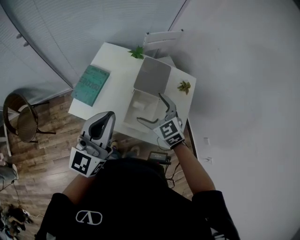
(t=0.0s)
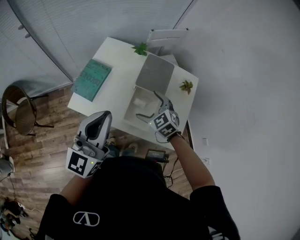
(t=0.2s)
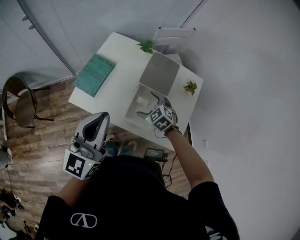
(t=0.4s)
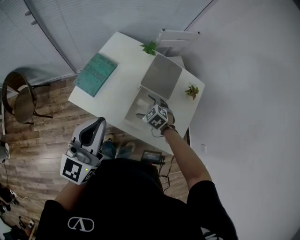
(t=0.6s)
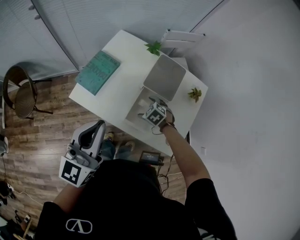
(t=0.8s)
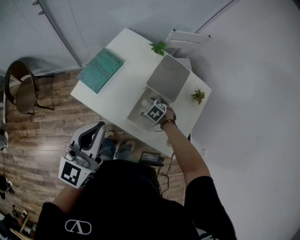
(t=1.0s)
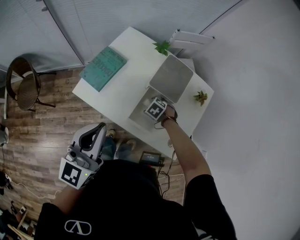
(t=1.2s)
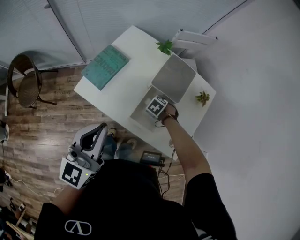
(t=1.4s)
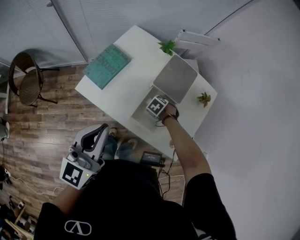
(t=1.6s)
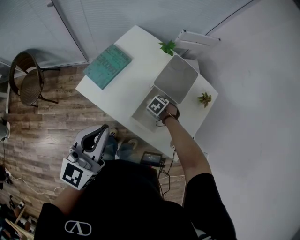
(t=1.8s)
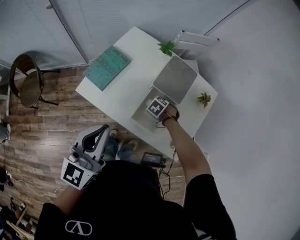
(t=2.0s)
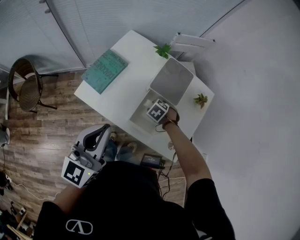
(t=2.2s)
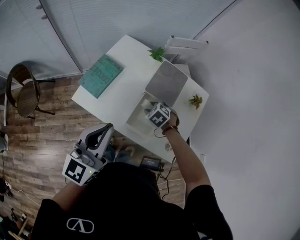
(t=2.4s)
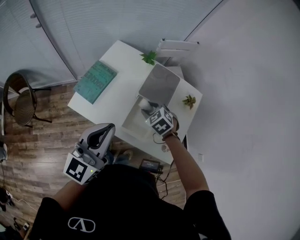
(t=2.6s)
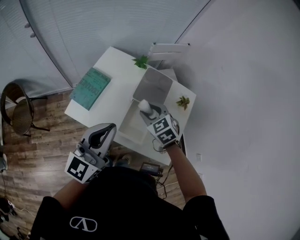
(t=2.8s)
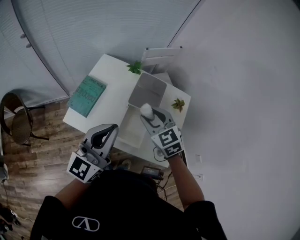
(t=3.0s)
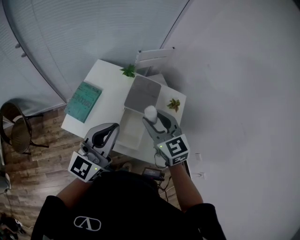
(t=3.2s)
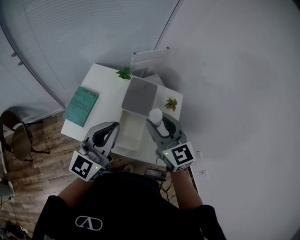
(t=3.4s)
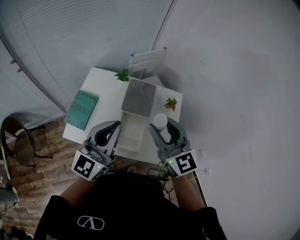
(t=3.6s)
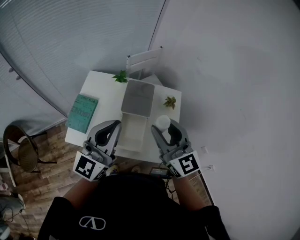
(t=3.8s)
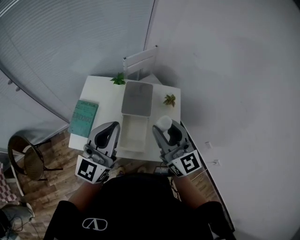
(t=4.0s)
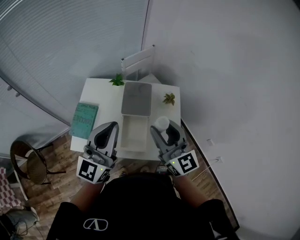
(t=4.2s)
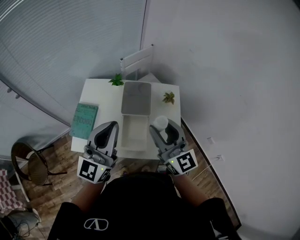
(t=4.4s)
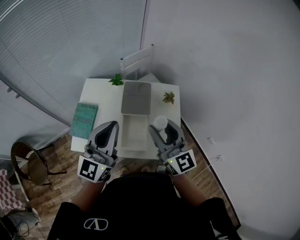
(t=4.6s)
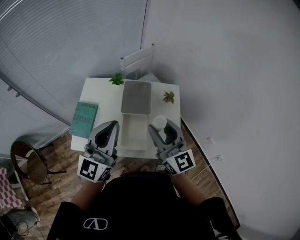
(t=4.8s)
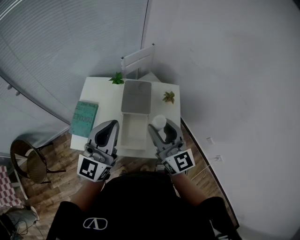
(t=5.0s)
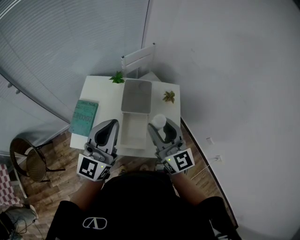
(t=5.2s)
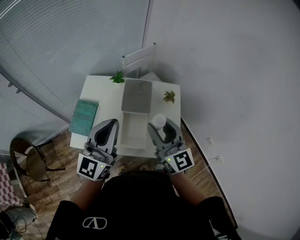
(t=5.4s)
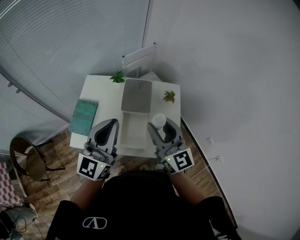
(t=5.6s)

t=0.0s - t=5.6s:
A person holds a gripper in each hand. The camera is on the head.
t=0.0s - t=1.4s: The left gripper travels downward by some 10 cm. Meanwhile the right gripper travels downward by roughly 30 cm, tips its fingers downward by about 50 degrees, and closes up.
t=1.4s - t=2.8s: The left gripper ends up about 10 cm from where it was, while the right gripper moves upward, about 25 cm, and angles its fingers upward, by roughly 40 degrees.
t=2.8s - t=4.2s: The right gripper heads upward, to the right and backward, covering roughly 25 cm, and tilts its fingers roughly 50 degrees upward, while the left gripper shifts about 10 cm upward and to the right.
t=4.2s - t=5.6s: Both grippers stay about where they are.

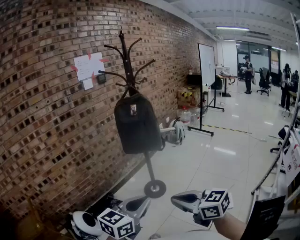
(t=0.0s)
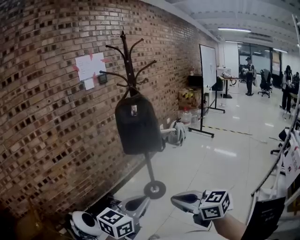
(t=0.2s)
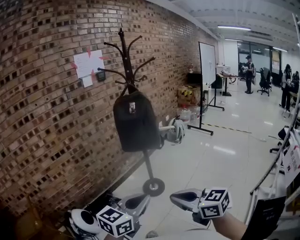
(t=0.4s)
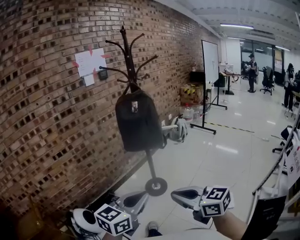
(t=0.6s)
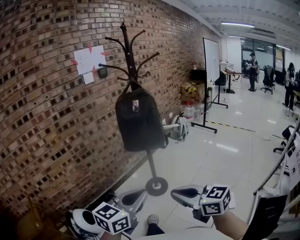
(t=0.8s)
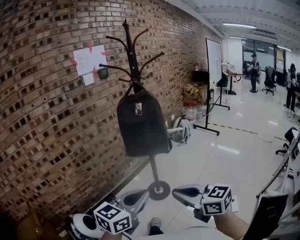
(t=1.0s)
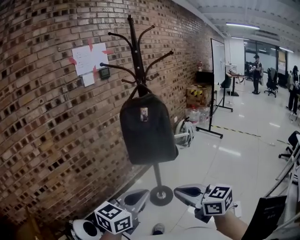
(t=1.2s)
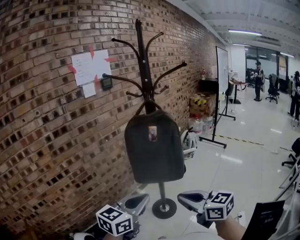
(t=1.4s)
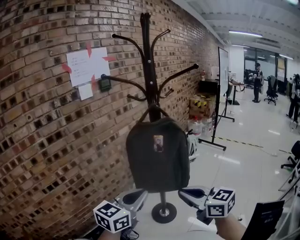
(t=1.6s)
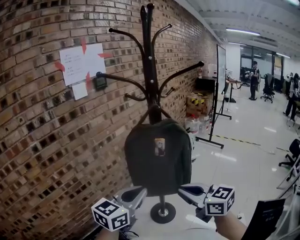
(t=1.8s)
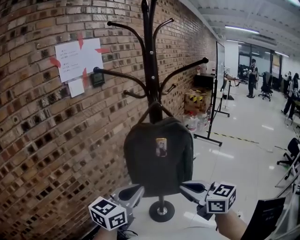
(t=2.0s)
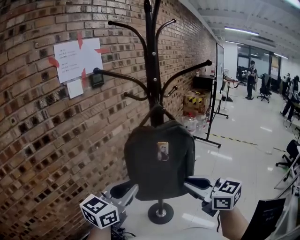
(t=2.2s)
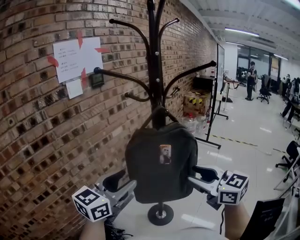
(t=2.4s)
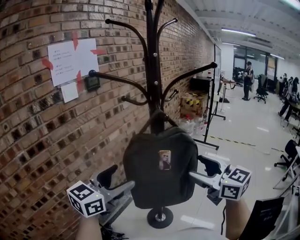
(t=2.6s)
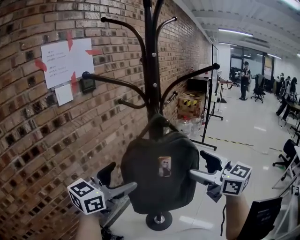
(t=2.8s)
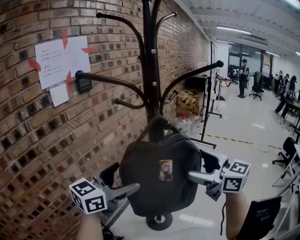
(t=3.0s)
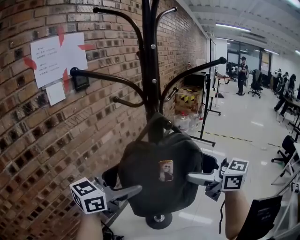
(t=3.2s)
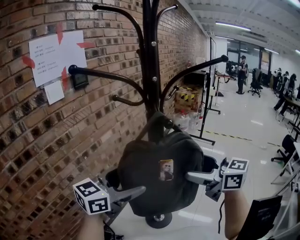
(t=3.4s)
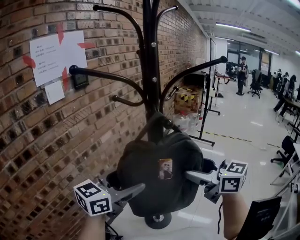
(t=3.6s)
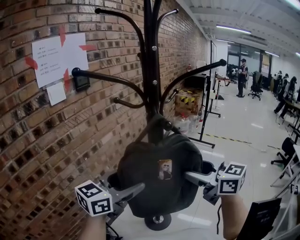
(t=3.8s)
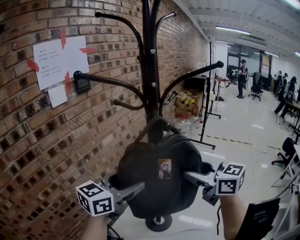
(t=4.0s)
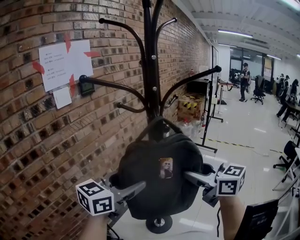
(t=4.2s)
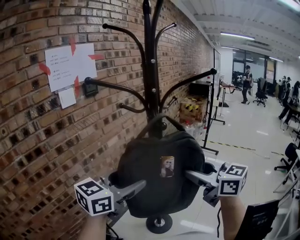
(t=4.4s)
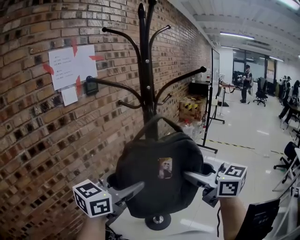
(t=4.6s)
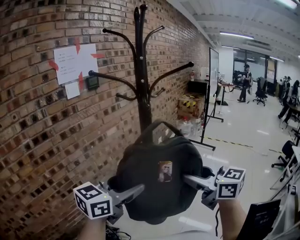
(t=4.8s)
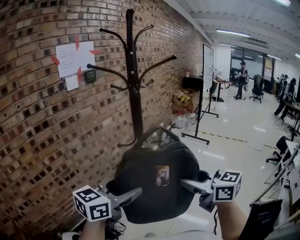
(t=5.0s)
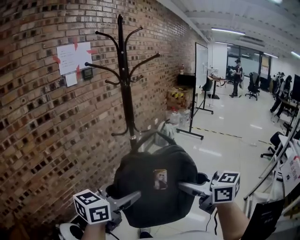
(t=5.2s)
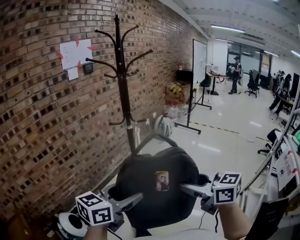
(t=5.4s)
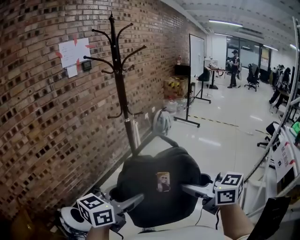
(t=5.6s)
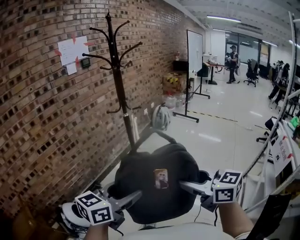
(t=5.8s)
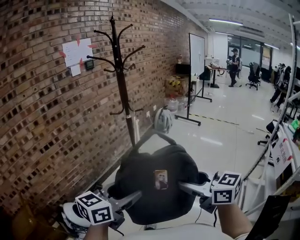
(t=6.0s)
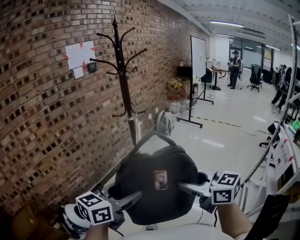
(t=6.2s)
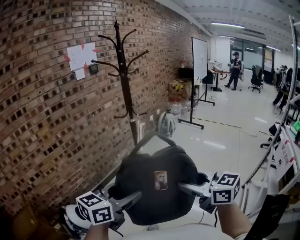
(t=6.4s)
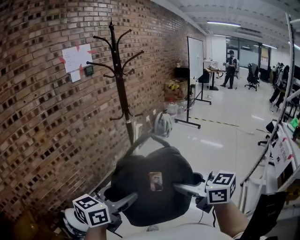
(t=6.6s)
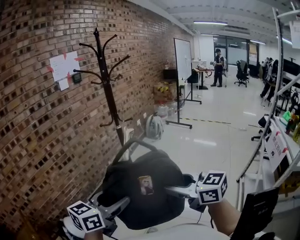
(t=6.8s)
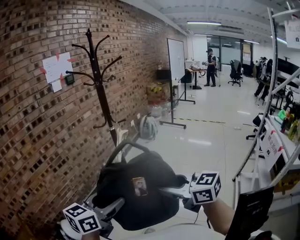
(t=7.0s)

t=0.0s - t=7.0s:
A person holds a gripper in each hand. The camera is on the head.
t=0.0s - t=1.4s: The two grippers go some 30 cm forward.
t=1.4s - t=2.8s: The right gripper goes approximately 30 cm forward and upward, turns by about 20 degrees, and opens its fingers. The left gripper shifts about 25 cm forward, and opens.
t=2.8s - t=4.2s: The left gripper closes its fingers, while the right gripper closes its fingers.
t=4.2s - t=5.6s: Both grippers are carried backward, some 50 cm.
t=5.6s - t=7.0s: The grippers stay close to where they were, moving slightly.

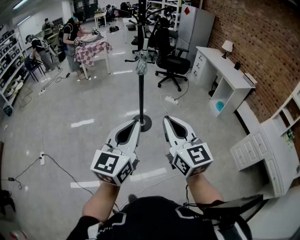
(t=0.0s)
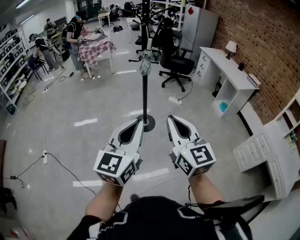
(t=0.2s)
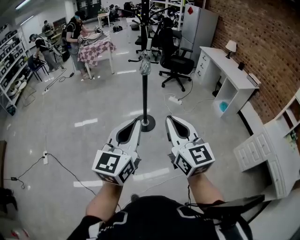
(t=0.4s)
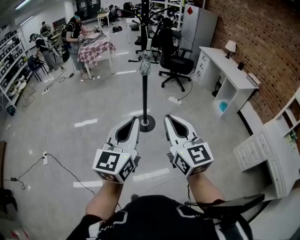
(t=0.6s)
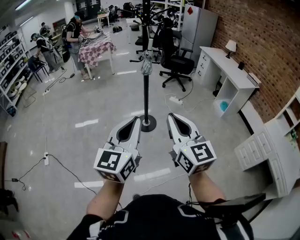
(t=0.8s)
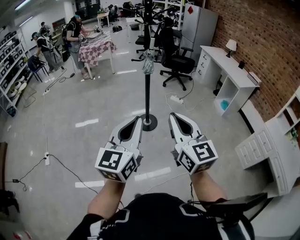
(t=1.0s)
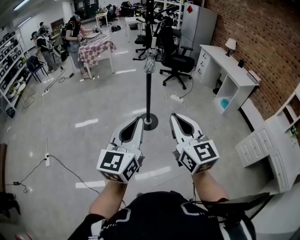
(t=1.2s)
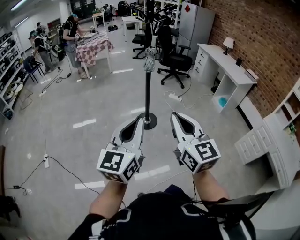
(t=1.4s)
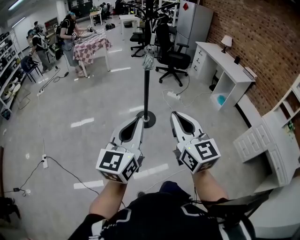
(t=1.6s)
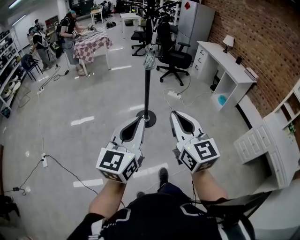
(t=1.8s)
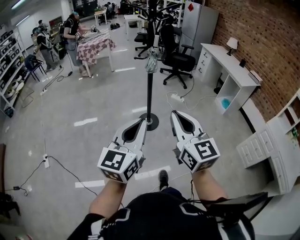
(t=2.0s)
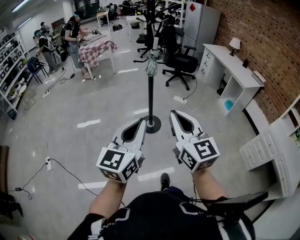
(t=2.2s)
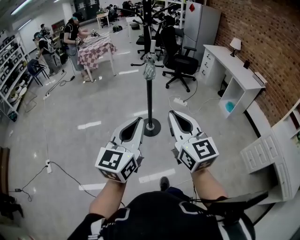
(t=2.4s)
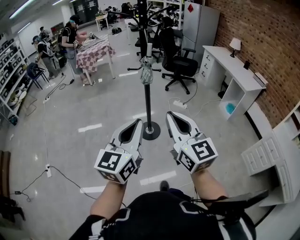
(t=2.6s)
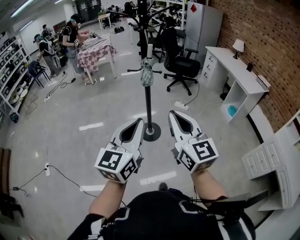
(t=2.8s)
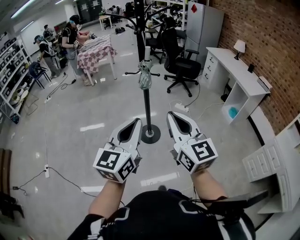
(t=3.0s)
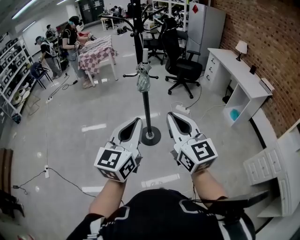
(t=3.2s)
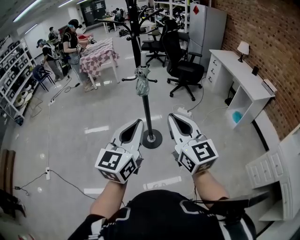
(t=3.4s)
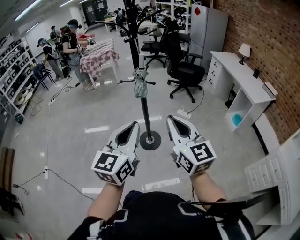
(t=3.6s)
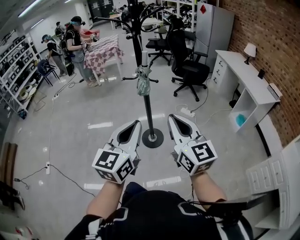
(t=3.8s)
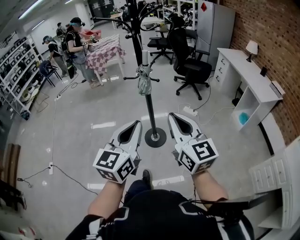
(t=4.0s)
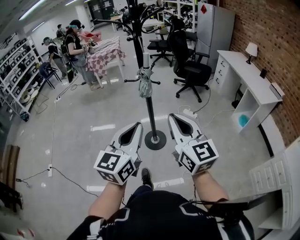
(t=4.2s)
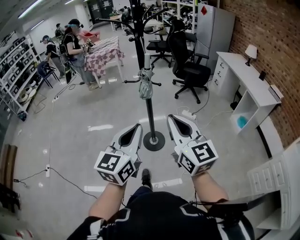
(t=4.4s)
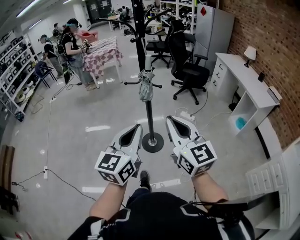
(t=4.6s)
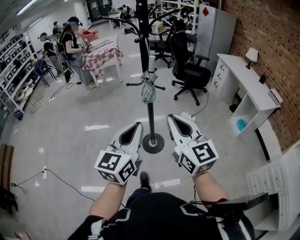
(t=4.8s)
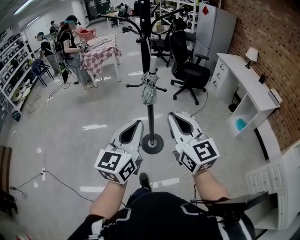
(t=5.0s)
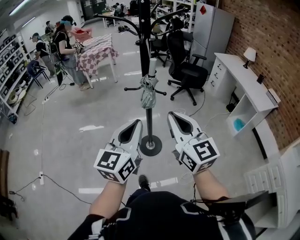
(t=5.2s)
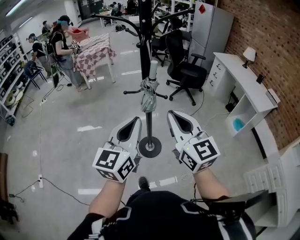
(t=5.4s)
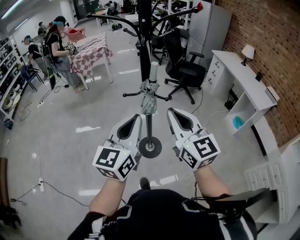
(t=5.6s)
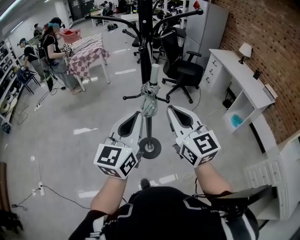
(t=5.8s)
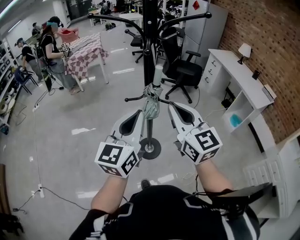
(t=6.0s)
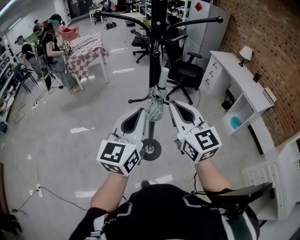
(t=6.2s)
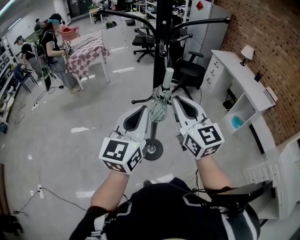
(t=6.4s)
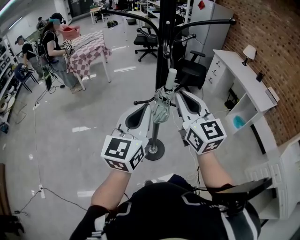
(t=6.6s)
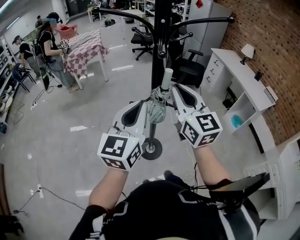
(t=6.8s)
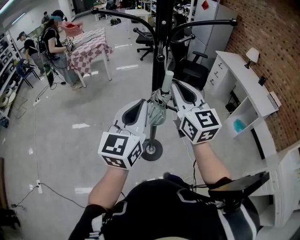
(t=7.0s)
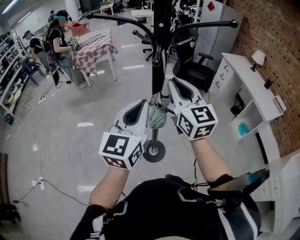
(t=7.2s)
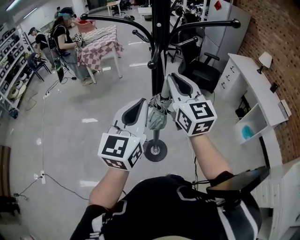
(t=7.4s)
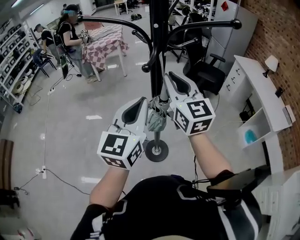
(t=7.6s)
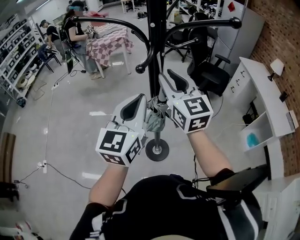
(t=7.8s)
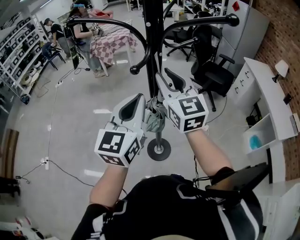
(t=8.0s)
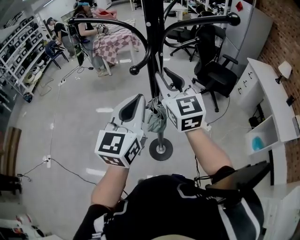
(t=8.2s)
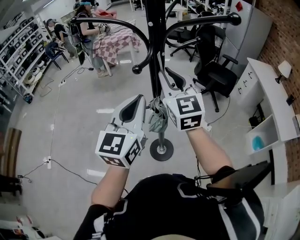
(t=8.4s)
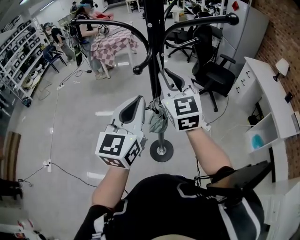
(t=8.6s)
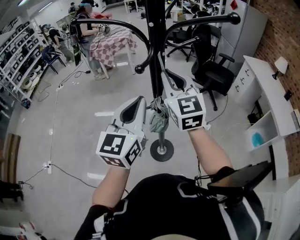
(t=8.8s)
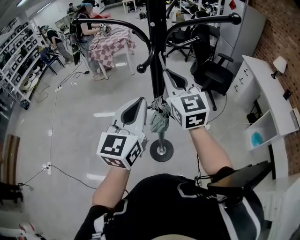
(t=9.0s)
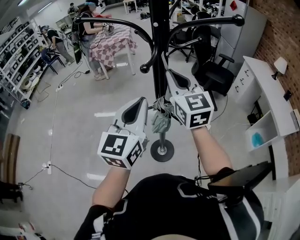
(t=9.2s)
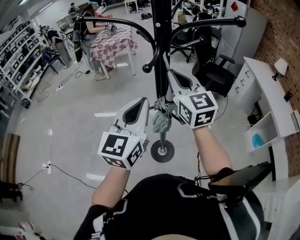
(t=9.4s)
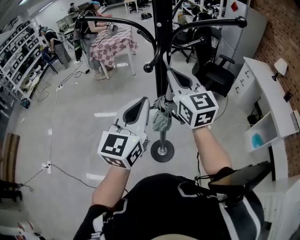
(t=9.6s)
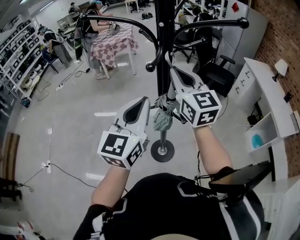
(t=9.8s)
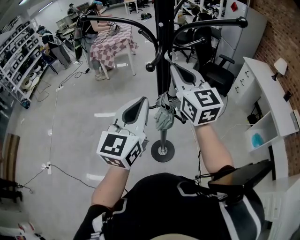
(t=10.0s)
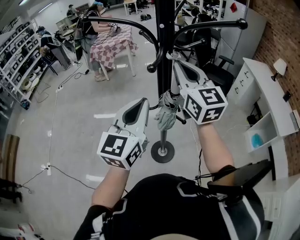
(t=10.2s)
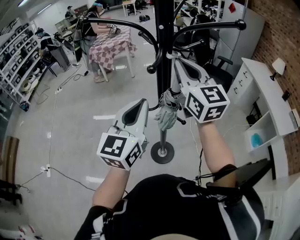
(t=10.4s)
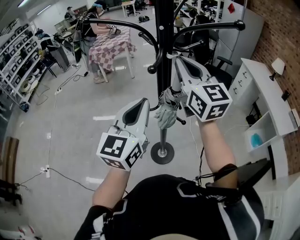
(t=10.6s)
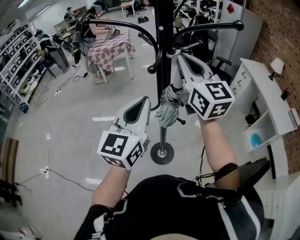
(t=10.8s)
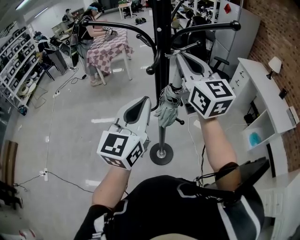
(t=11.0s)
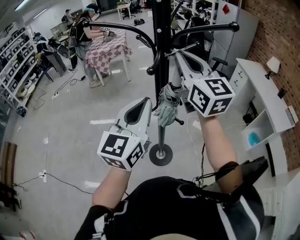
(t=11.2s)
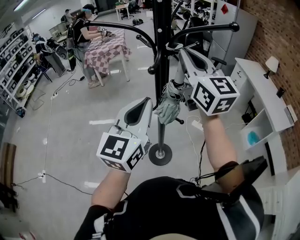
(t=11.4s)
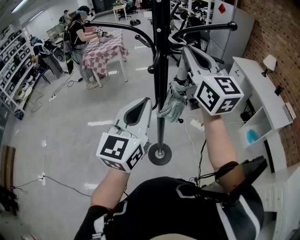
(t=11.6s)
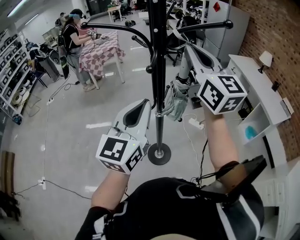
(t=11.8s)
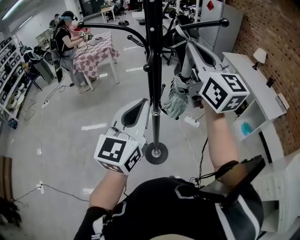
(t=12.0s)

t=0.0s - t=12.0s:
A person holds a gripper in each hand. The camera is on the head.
t=0.0s - t=1.6s: The grippers both shift to the left by some 5 cm.
t=1.6s - t=3.0s: The grippers both shift forward and to the right by approximately 25 cm.
t=3.0s - t=4.4s: The grippers both shift forward by some 10 cm.
t=4.4s - t=6.0s: Both grippers move forward, some 25 cm.
t=6.0s - t=7.6s: The right gripper heads forward, covering some 20 cm. Meanwhile the left gripper is displaced forward by about 10 cm.
t=7.6s - t=9.0s: The grippers move only a little.
t=9.0s - t=10.4s: The right gripper is displaced upward by approximately 5 cm.
t=10.4s - t=12.0s: The right gripper heads upward and backward, covering roughly 10 cm.
